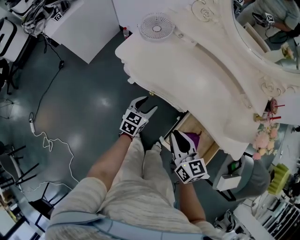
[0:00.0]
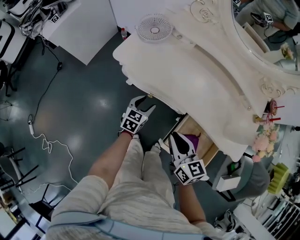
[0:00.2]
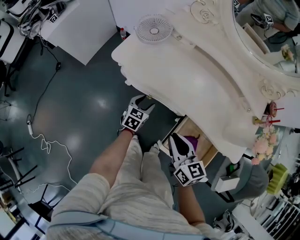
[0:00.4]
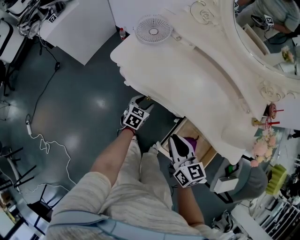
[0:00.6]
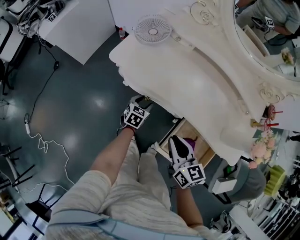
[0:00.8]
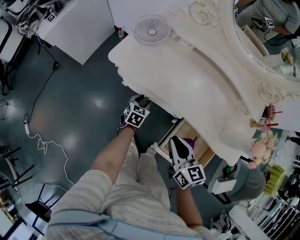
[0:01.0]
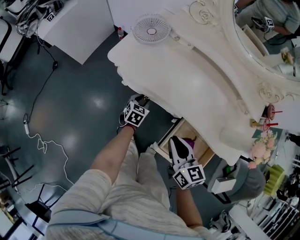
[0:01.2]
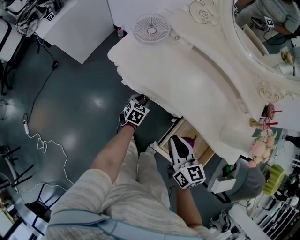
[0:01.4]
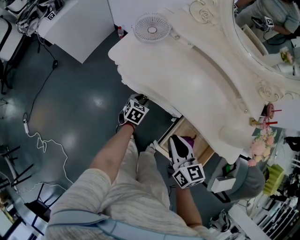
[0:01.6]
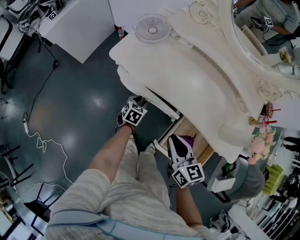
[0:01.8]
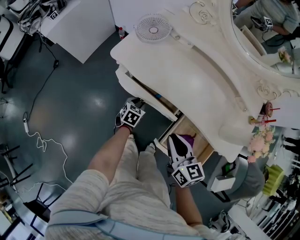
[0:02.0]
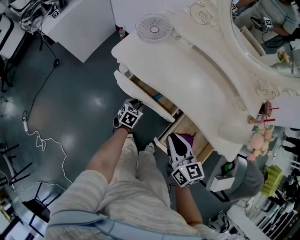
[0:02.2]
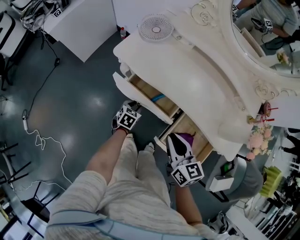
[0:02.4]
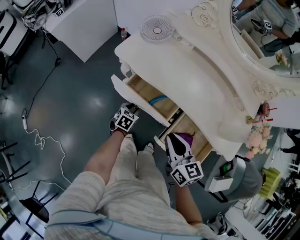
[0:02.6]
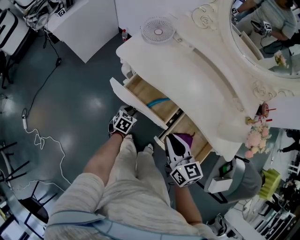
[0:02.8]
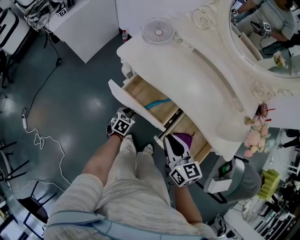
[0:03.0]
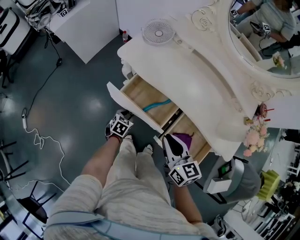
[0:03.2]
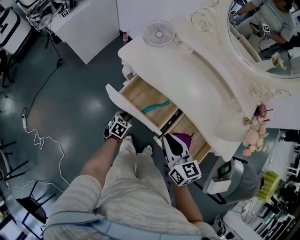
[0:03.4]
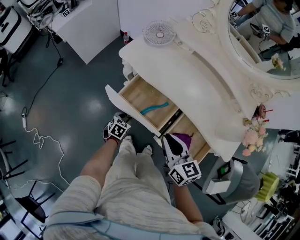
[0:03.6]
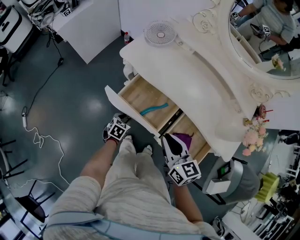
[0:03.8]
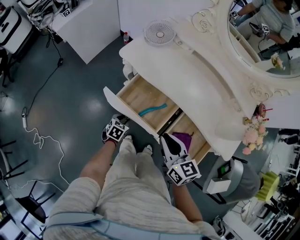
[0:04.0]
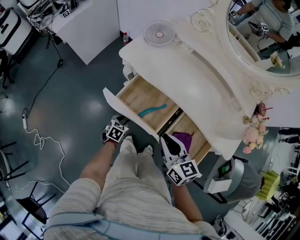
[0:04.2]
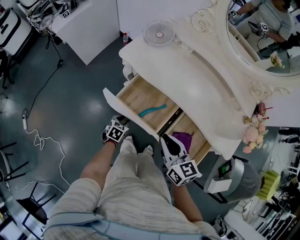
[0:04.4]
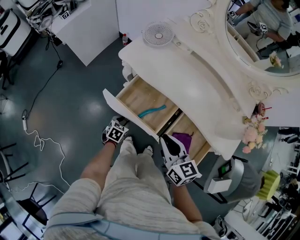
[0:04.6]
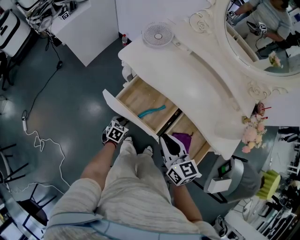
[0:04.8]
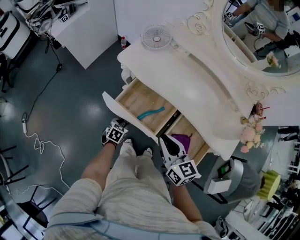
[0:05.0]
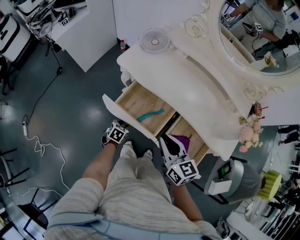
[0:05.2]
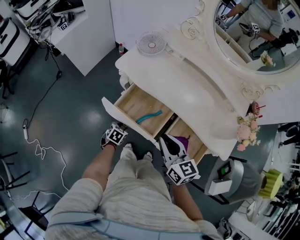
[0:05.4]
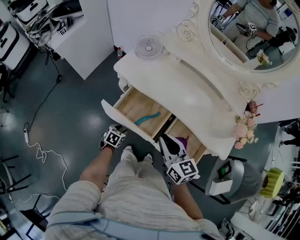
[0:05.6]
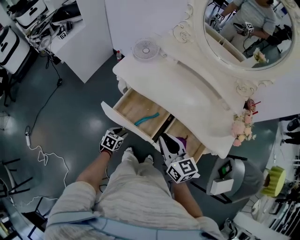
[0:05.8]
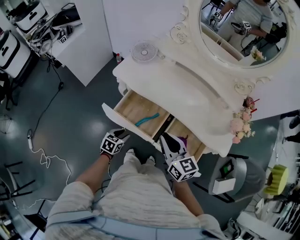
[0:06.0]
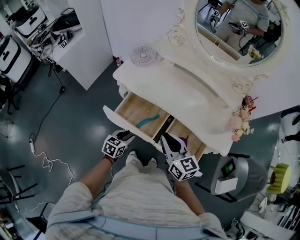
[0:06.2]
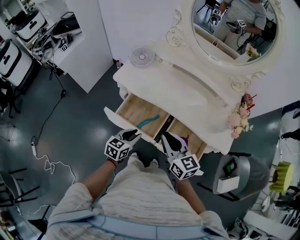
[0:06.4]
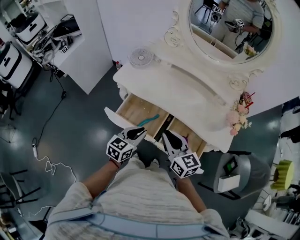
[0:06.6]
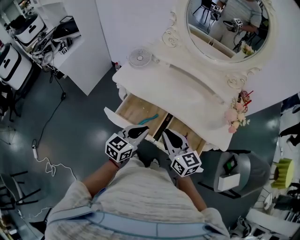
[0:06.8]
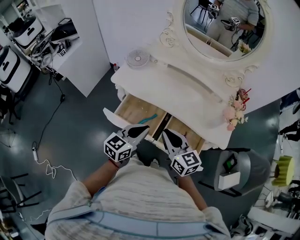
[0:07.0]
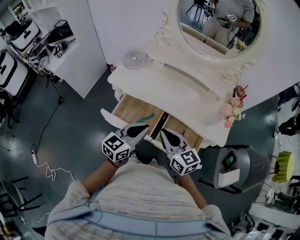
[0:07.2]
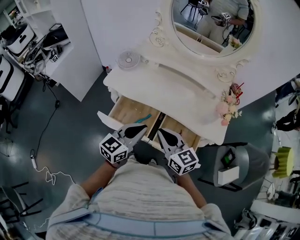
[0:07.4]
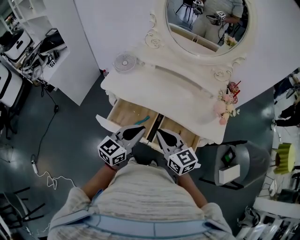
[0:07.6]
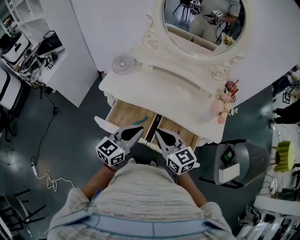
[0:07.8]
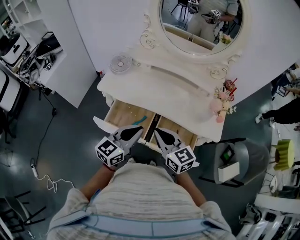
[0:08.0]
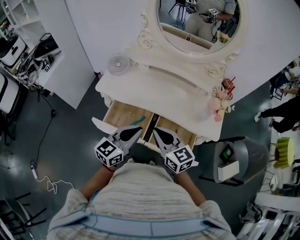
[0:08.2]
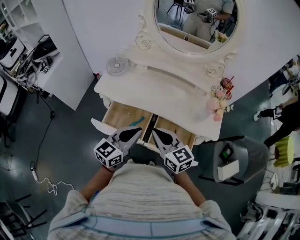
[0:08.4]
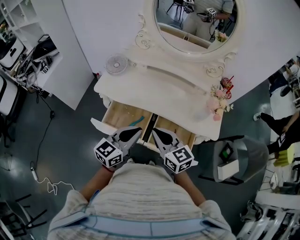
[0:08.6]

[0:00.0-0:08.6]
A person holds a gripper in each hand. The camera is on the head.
0:00.0 to 0:01.4: The left gripper is displaced downward and forward by approximately 10 cm, and closes up.
0:01.4 to 0:02.8: The left gripper shifts roughly 10 cm backward and to the left. The right gripper changes place by approximately 5 cm.
0:02.8 to 0:04.4: The left gripper shifts roughly 5 cm backward.
0:04.4 to 0:05.8: The left gripper is displaced upward by roughly 5 cm; the right gripper ends up roughly 5 cm from where it was.
0:05.8 to 0:07.2: The right gripper shifts about 5 cm upward. The left gripper shifts some 35 cm upward and to the right, angles its fingers upward, by approximately 40 degrees, and closes up.
0:07.2 to 0:08.6: The grippers move only a little.

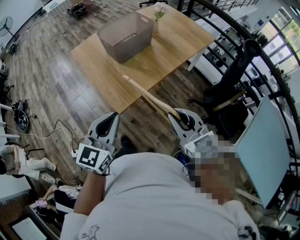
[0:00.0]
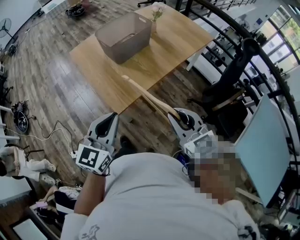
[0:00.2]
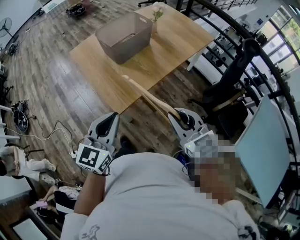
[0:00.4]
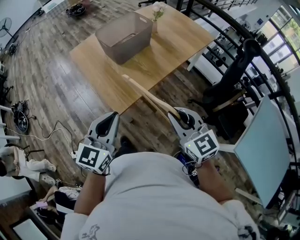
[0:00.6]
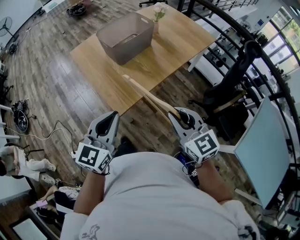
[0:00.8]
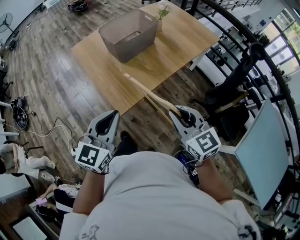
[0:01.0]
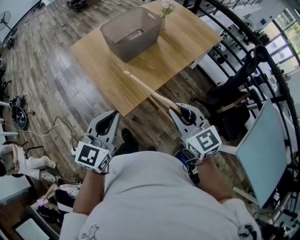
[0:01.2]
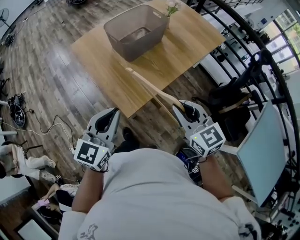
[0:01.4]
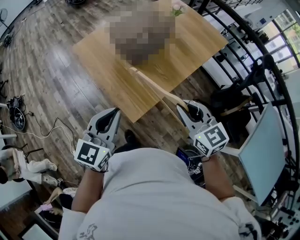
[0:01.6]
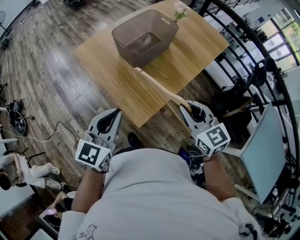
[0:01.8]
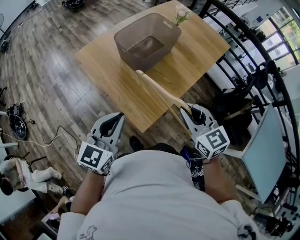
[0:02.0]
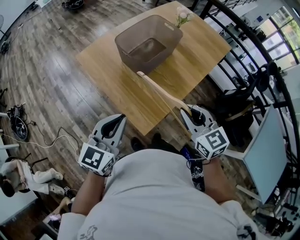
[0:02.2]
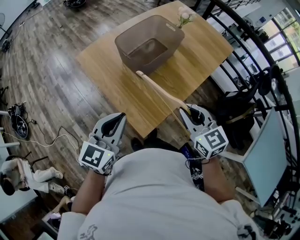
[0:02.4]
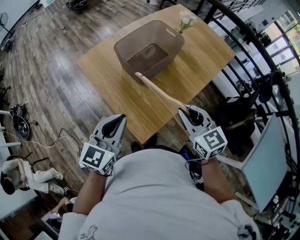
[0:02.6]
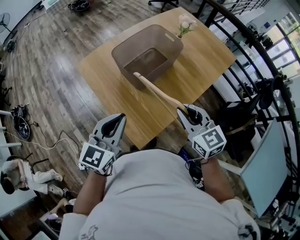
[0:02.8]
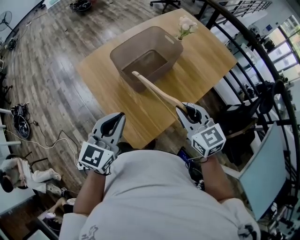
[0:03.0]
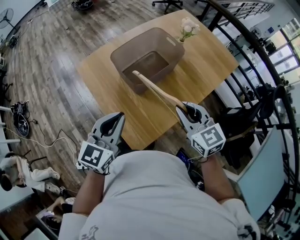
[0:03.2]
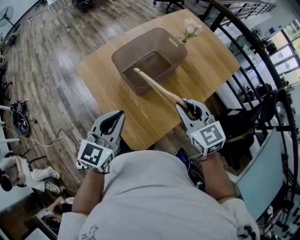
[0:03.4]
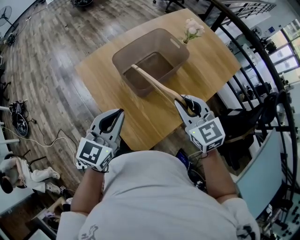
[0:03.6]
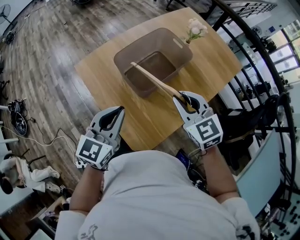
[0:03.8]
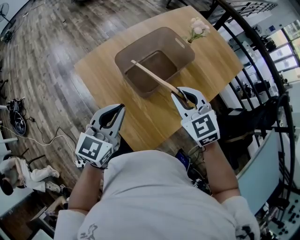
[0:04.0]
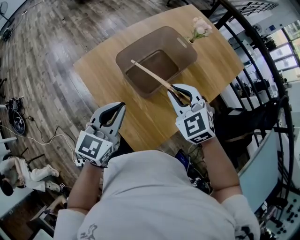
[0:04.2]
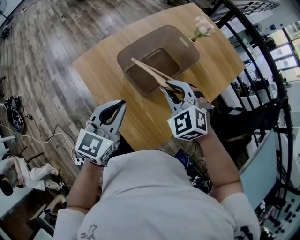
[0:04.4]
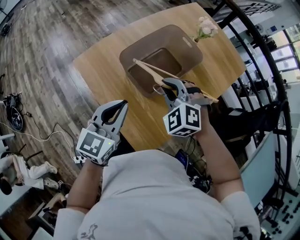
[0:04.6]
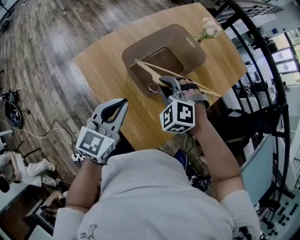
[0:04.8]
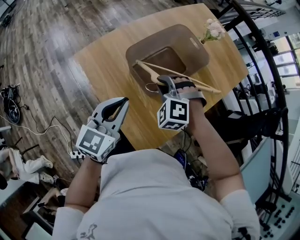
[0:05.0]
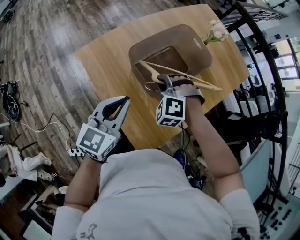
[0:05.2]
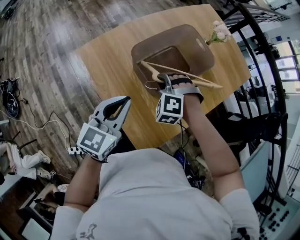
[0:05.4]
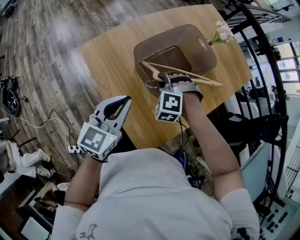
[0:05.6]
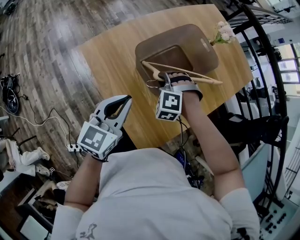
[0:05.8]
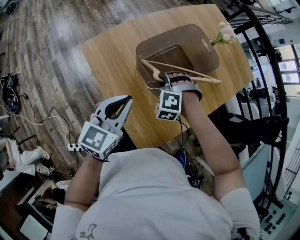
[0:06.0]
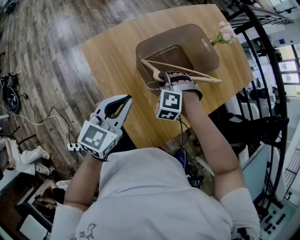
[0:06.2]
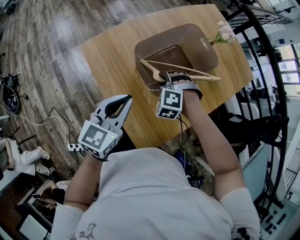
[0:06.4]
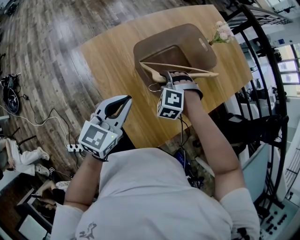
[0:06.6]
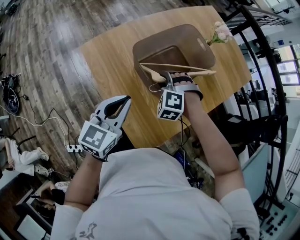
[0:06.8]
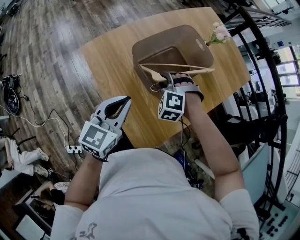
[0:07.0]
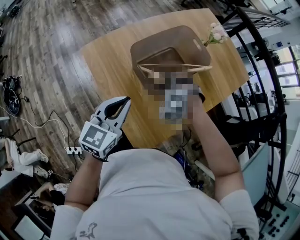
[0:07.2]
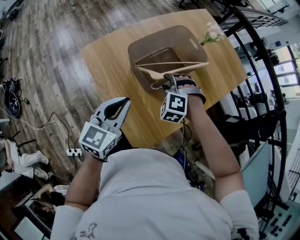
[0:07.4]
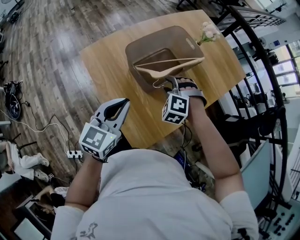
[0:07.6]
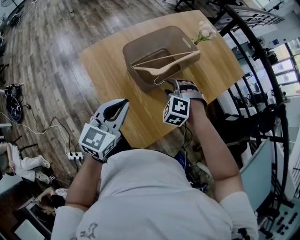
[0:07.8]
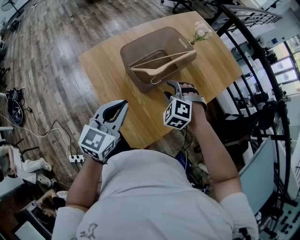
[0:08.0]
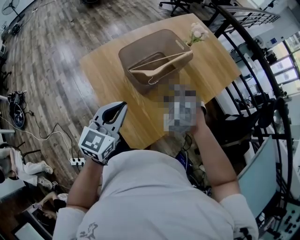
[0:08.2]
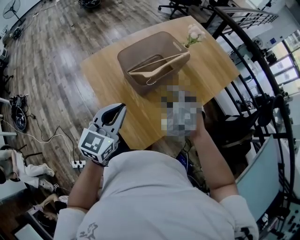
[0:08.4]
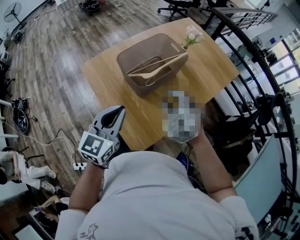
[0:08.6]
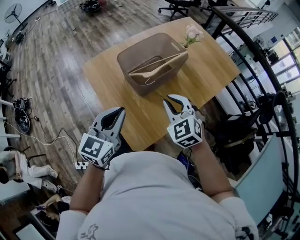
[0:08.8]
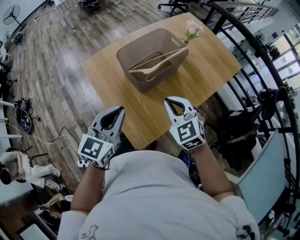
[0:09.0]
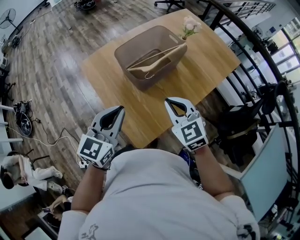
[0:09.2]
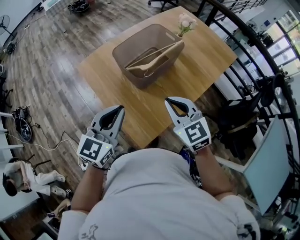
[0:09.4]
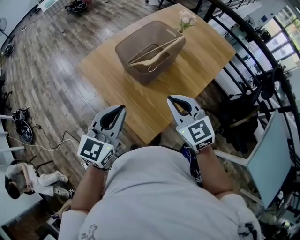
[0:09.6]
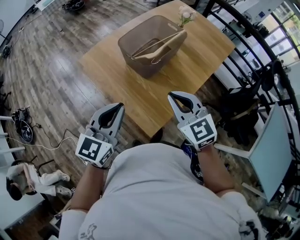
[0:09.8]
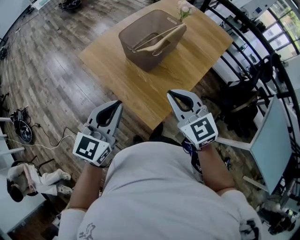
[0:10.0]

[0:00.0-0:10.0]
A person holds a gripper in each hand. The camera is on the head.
0:00.0 to 0:01.4: Both grippers move forward and to the left, about 10 cm.
0:01.4 to 0:02.8: Both grippers move forward, some 15 cm.
0:02.8 to 0:04.2: The right gripper is displaced forward and to the left by approximately 20 cm, and rotates about 30 degrees; the left gripper heads forward, covering approximately 15 cm.
0:04.2 to 0:05.8: The left gripper shifts by approximately 5 cm, while the right gripper travels downward and to the left by approximately 20 cm, and rotates around the line of its fingers by approximately 40 degrees, counterclockwise from behind.
0:05.8 to 0:07.2: The right gripper ends up approximately 5 cm from where it was, and opens up.
0:07.2 to 0:08.6: The left gripper moves backward, to the right and upward, approximately 10 cm. The right gripper shifts about 15 cm upward, backward and to the right, and turns by roughly 40 degrees.
0:08.6 to 0:10.0: The right gripper is displaced backward, upward and to the left by approximately 15 cm, changes its angle by some 30 degrees, and closes its fingers. The left gripper moves backward and to the left, some 10 cm.

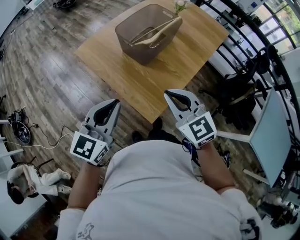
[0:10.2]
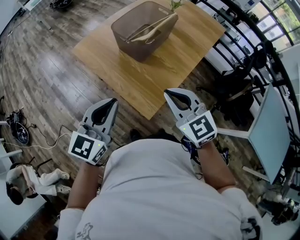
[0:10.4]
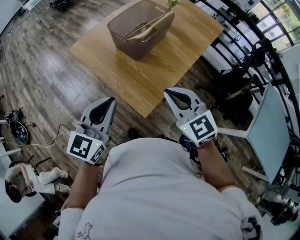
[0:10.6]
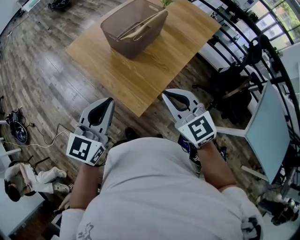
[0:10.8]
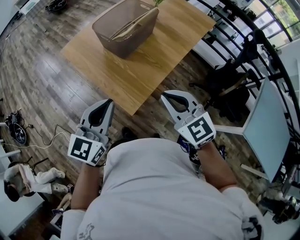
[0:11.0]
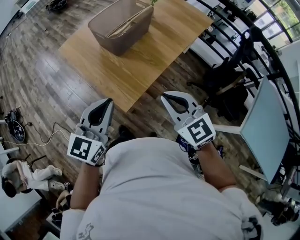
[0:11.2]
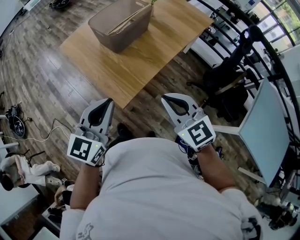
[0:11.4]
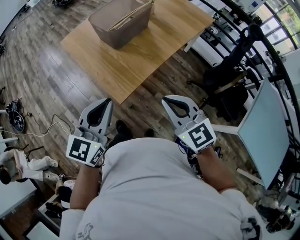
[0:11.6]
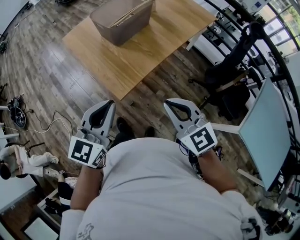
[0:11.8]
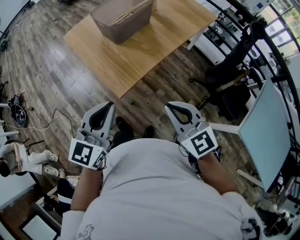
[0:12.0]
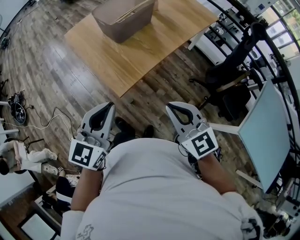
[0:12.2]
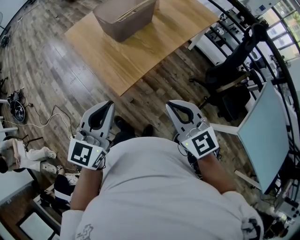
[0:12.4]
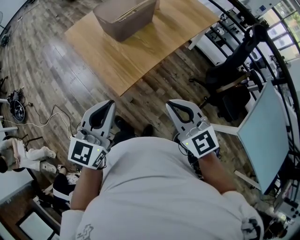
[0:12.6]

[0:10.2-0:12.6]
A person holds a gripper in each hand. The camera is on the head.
0:10.2 to 0:11.4: The grippers both shift to the right and backward by about 20 cm.
0:11.4 to 0:12.6: Both grippers travel together backward, roughly 5 cm.

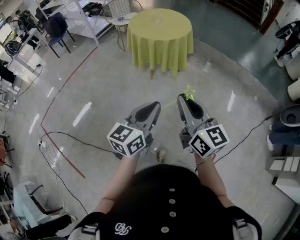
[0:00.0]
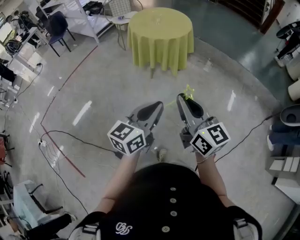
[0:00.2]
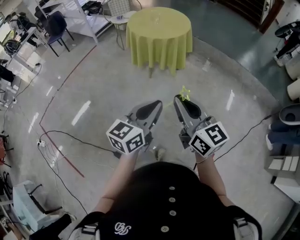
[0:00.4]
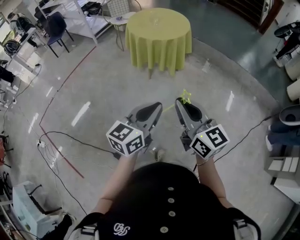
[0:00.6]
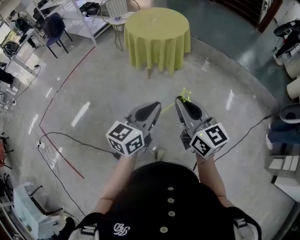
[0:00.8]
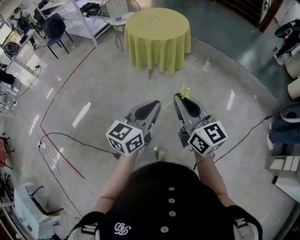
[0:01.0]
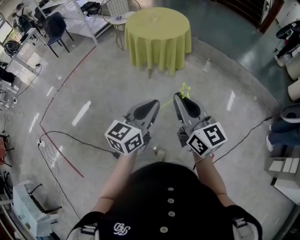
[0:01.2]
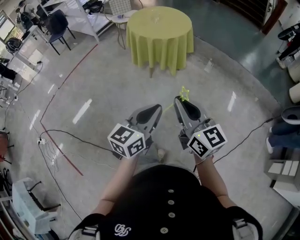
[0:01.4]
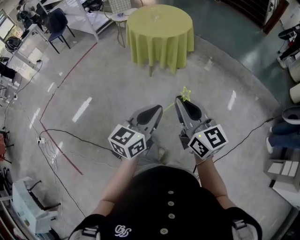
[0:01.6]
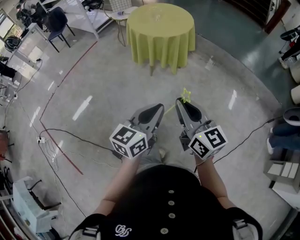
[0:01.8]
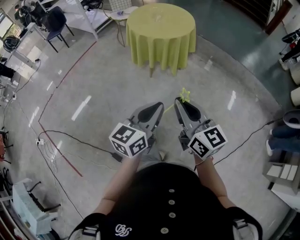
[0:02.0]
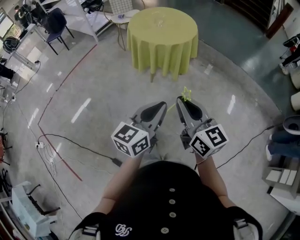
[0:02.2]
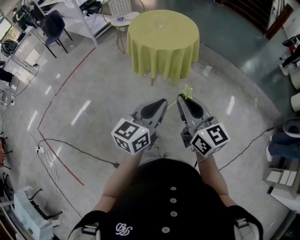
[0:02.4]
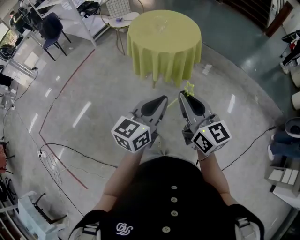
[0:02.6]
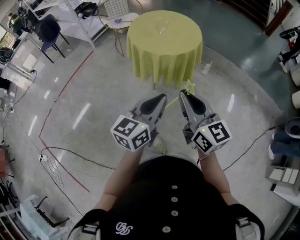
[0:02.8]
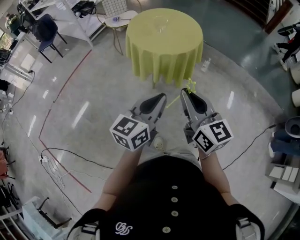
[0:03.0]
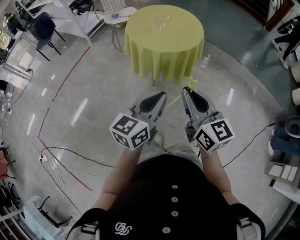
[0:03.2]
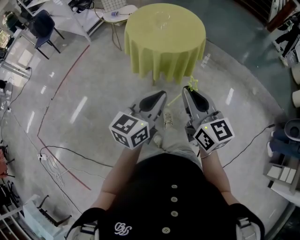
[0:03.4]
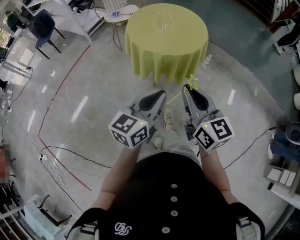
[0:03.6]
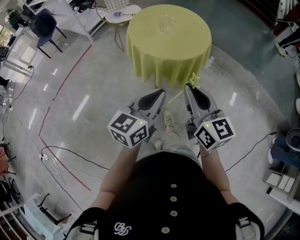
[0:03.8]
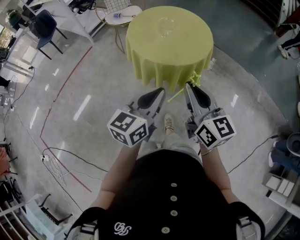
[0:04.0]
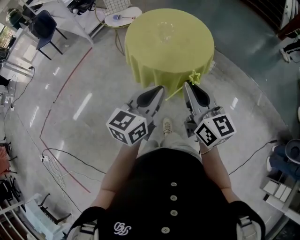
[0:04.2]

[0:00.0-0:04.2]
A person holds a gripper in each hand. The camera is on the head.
0:00.0 to 0:01.4: There are only small adjustments of the grippers.
0:01.4 to 0:02.8: The grippers both shift forward by some 25 cm.
0:02.8 to 0:04.2: The grippers both shift forward by about 25 cm.
